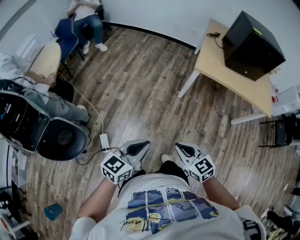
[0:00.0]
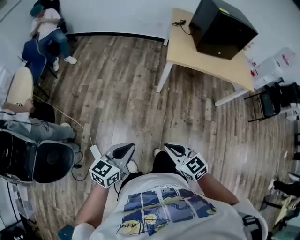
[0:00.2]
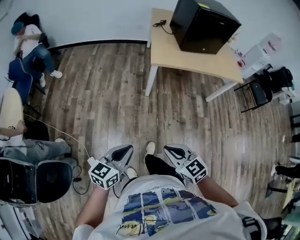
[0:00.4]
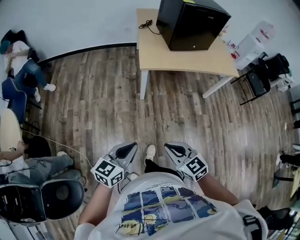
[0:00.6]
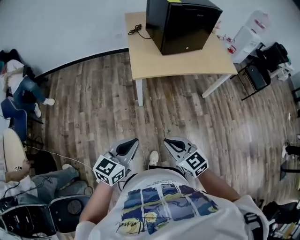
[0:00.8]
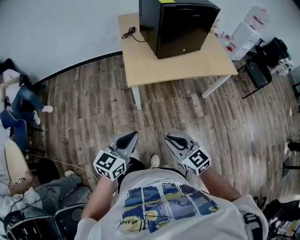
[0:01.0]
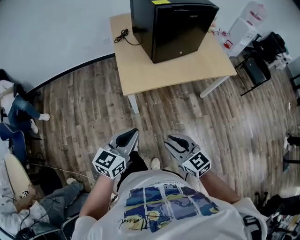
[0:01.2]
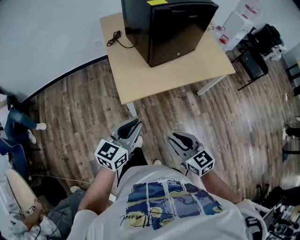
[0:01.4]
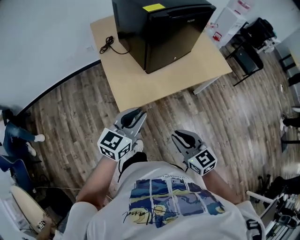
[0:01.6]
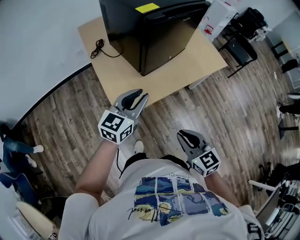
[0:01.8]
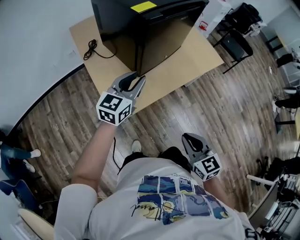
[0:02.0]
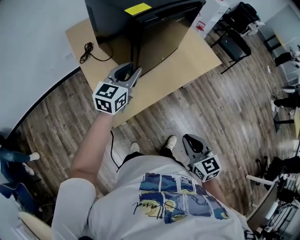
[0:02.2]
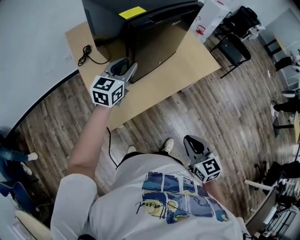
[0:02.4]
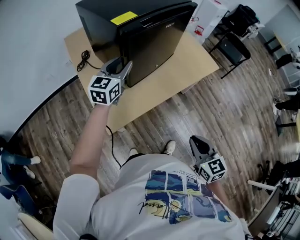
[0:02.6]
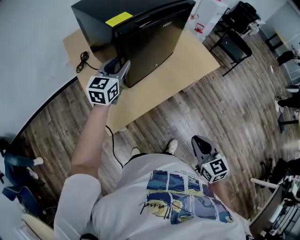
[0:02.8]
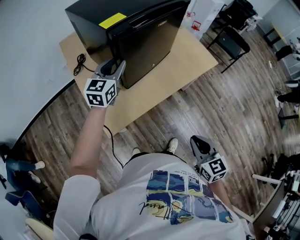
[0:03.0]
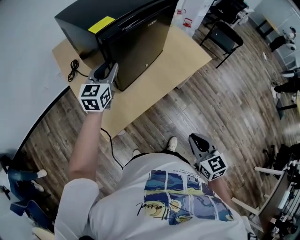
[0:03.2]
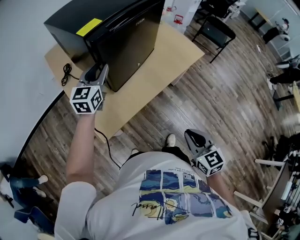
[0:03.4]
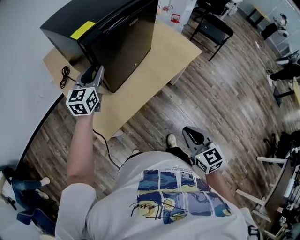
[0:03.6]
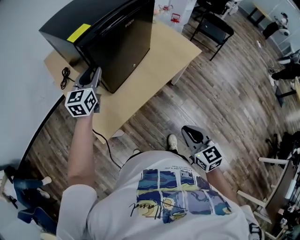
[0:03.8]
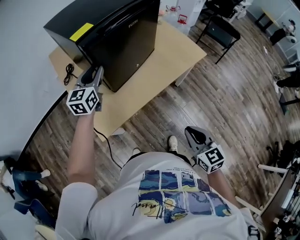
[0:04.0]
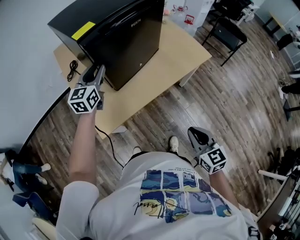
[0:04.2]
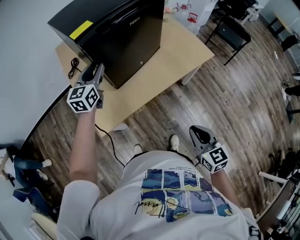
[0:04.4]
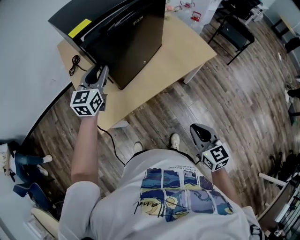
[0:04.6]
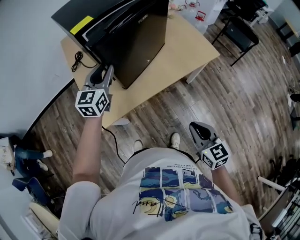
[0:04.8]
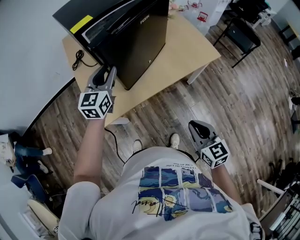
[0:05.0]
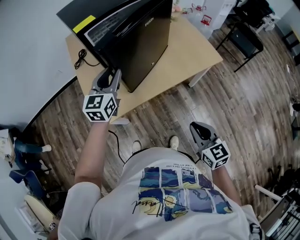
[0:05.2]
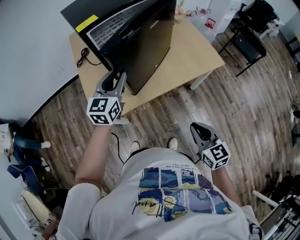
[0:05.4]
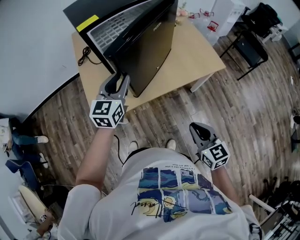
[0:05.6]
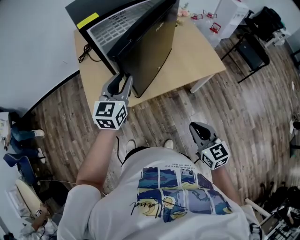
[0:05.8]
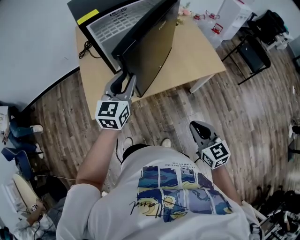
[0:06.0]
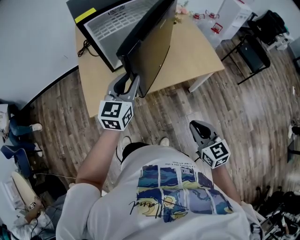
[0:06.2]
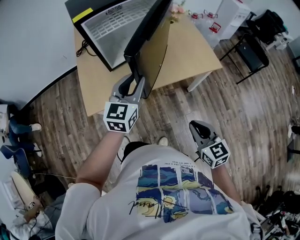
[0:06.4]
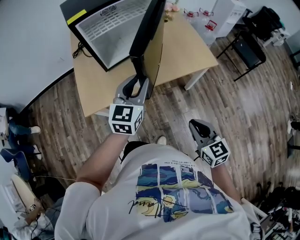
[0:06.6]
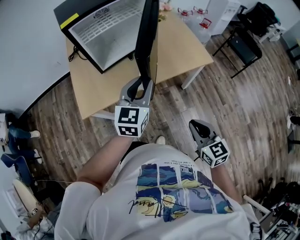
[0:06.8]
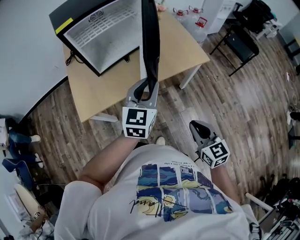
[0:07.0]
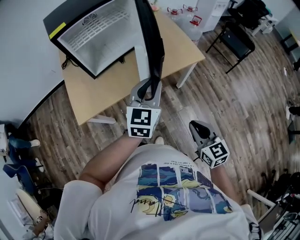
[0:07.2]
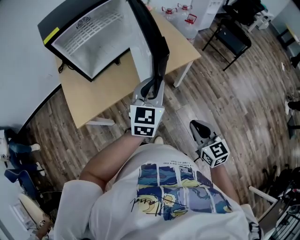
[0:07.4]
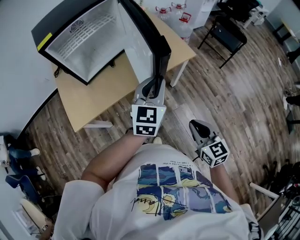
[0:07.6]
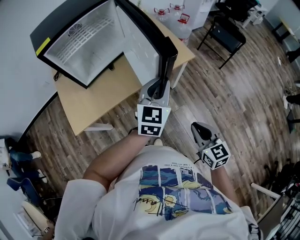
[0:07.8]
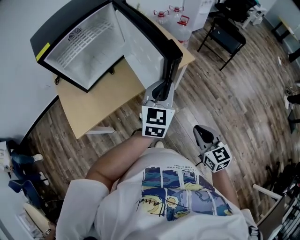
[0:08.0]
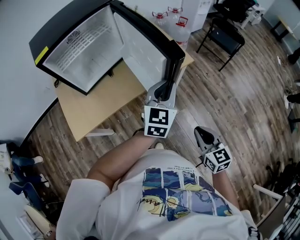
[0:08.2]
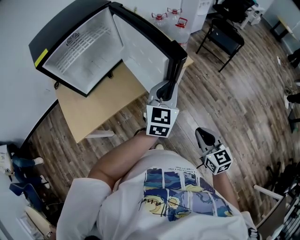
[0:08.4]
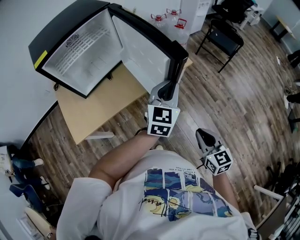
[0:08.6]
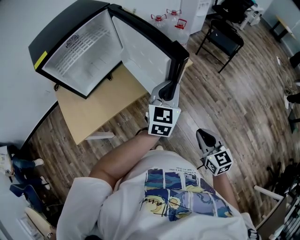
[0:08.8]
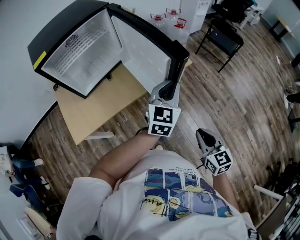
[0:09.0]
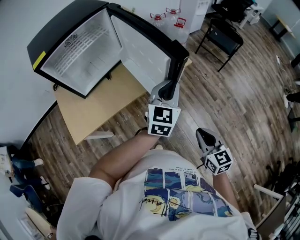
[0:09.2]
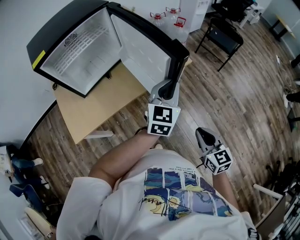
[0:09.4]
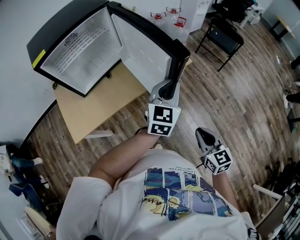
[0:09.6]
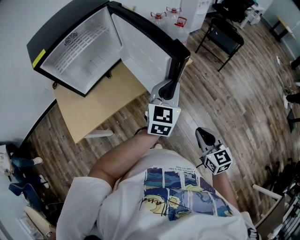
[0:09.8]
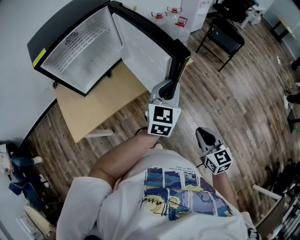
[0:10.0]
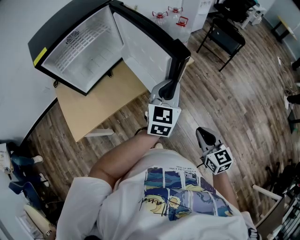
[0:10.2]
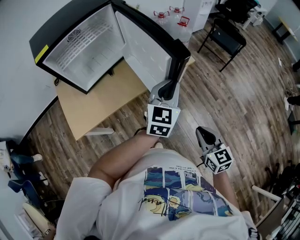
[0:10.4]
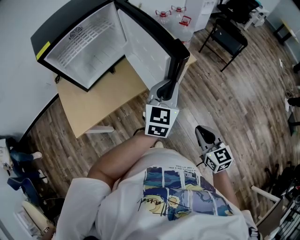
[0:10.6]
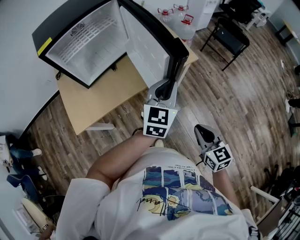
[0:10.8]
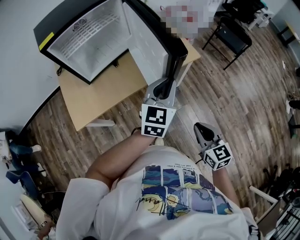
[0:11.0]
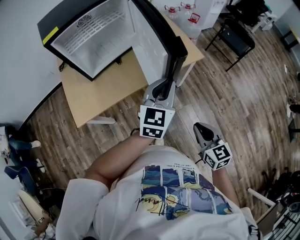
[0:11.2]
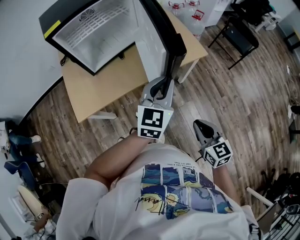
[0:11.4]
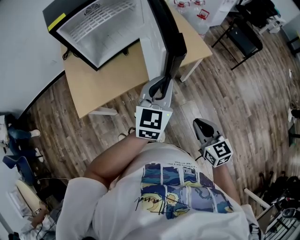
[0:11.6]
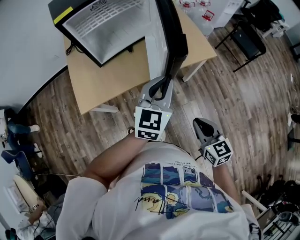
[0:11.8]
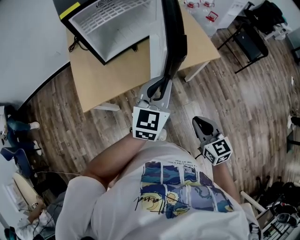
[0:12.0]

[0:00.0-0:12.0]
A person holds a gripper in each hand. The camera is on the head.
0:00.0 to 0:01.6: The two grippers travel together, approximately 50 cm. The right gripper changes its angle by some 40 degrees, while the left gripper turns by approximately 30 degrees.
0:01.6 to 0:03.0: The right gripper heads to the right and forward, covering roughly 15 cm, and rotates roughly 30 degrees; the left gripper travels forward by some 30 cm.
0:03.0 to 0:04.4: The right gripper travels to the right by roughly 10 cm.
0:04.4 to 0:06.0: The left gripper goes about 20 cm backward and to the right; the right gripper shifts approximately 10 cm to the right.
0:06.0 to 0:07.6: The right gripper shifts approximately 15 cm to the right and backward. Meanwhile the left gripper shifts approximately 25 cm to the right.
0:07.6 to 0:09.0: The left gripper heads to the right, covering some 10 cm. The right gripper shifts some 5 cm to the right.
0:09.0 to 0:10.4: There are only small adjustments of the grippers.
0:10.4 to 0:12.0: The grippers both shift to the left by approximately 15 cm.

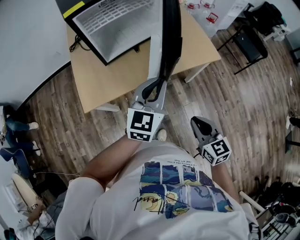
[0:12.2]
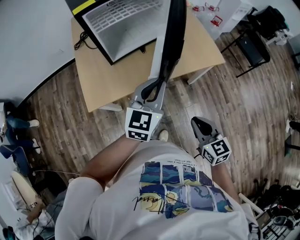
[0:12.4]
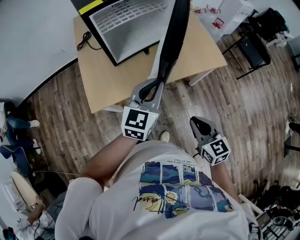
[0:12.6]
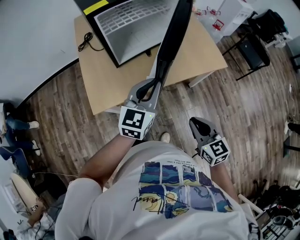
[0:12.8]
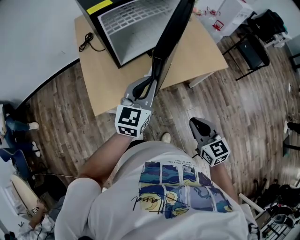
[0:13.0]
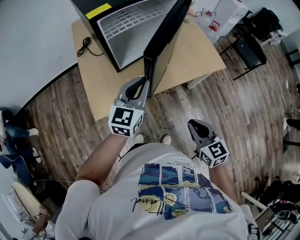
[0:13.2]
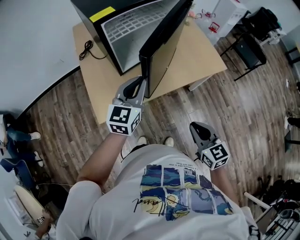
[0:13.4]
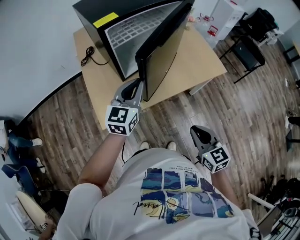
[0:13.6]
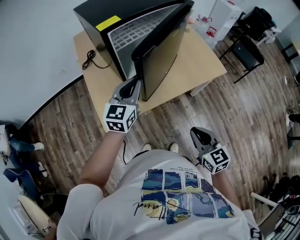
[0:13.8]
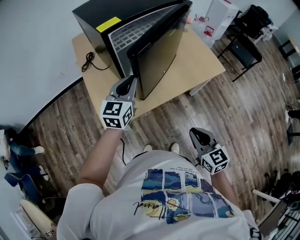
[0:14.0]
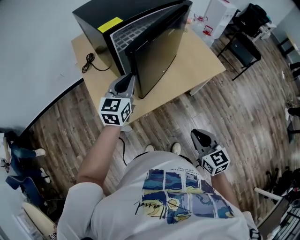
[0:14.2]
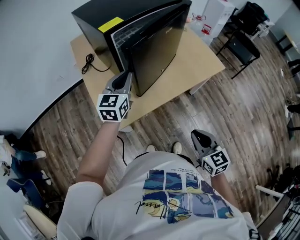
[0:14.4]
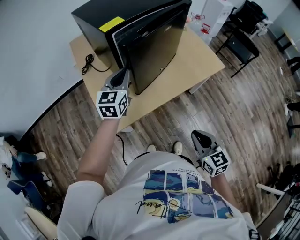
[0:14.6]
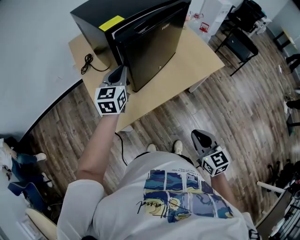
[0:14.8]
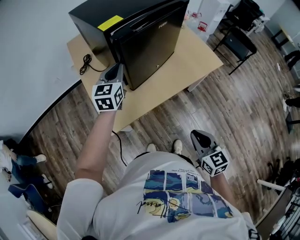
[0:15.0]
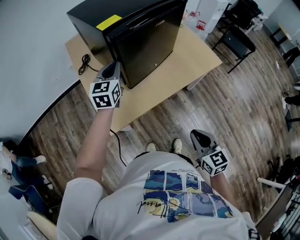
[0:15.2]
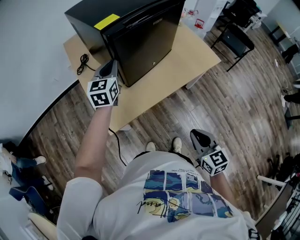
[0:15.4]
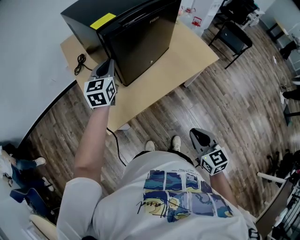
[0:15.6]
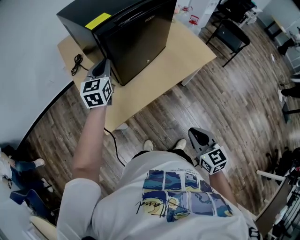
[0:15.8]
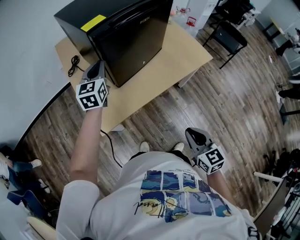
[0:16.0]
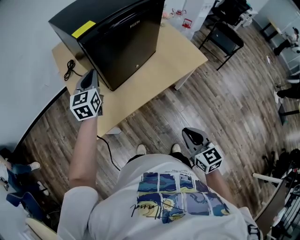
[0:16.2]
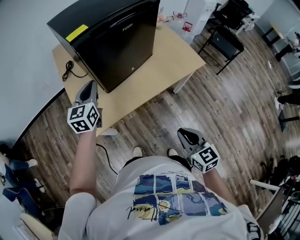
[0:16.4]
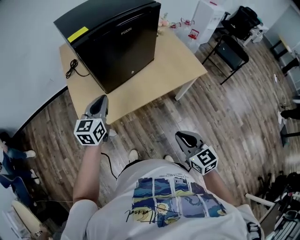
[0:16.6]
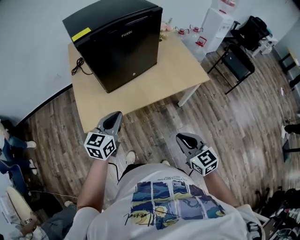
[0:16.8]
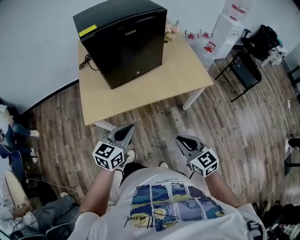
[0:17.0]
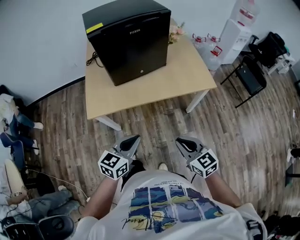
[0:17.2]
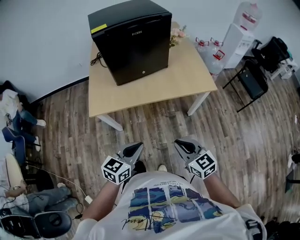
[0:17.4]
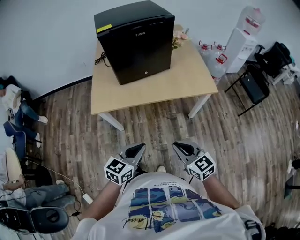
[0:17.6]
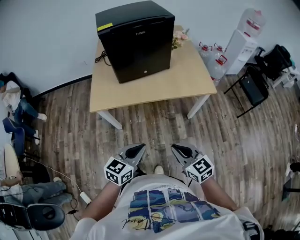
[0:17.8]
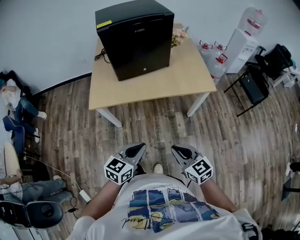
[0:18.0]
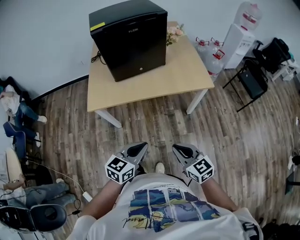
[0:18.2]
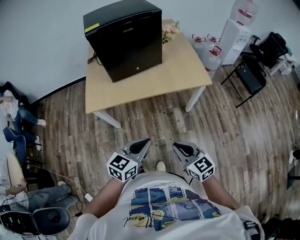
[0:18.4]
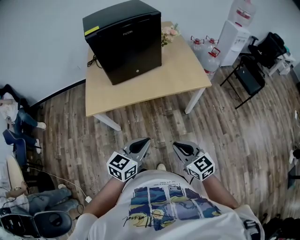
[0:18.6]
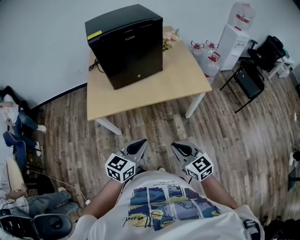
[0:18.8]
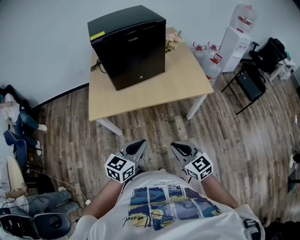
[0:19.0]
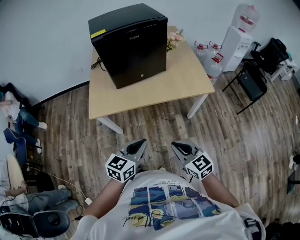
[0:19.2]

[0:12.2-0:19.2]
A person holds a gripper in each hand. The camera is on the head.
0:12.2 to 0:13.6: The right gripper goes about 10 cm to the left; the left gripper heads to the left and forward, covering roughly 20 cm.
0:13.6 to 0:15.0: The left gripper heads to the left and forward, covering approximately 15 cm. Meanwhile the right gripper heads to the left, covering approximately 5 cm.
0:15.0 to 0:16.4: The left gripper moves backward, about 5 cm, while the right gripper goes approximately 5 cm to the right.
0:16.4 to 0:17.8: The right gripper travels to the right and backward by about 15 cm, and swivels approximately 30 degrees; the left gripper goes roughly 50 cm backward and to the right.
0:17.8 to 0:19.2: There are only small adjustments of the grippers.

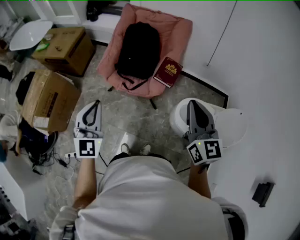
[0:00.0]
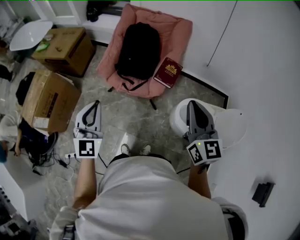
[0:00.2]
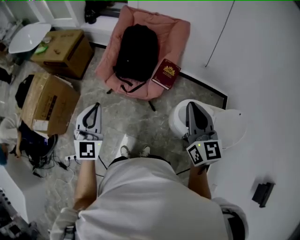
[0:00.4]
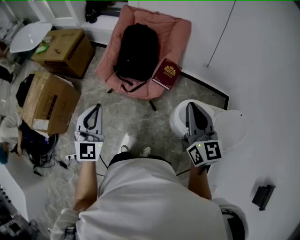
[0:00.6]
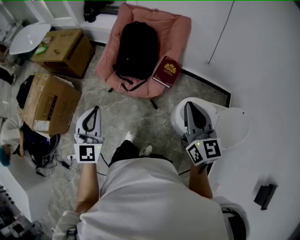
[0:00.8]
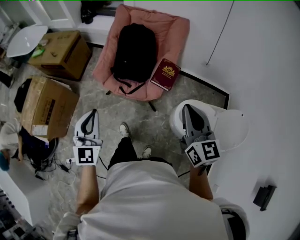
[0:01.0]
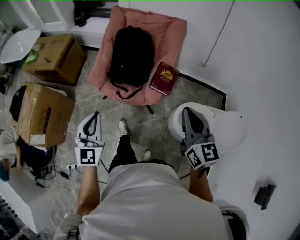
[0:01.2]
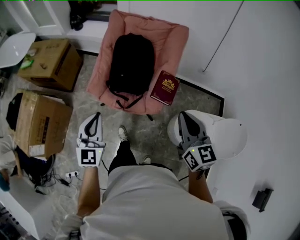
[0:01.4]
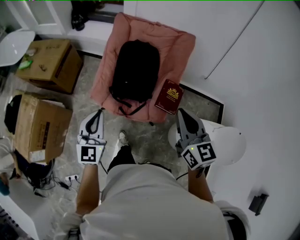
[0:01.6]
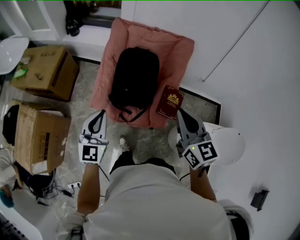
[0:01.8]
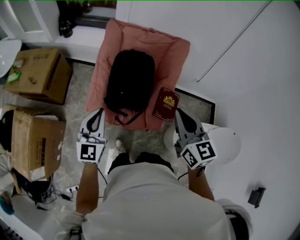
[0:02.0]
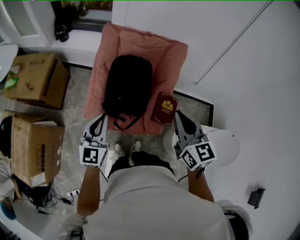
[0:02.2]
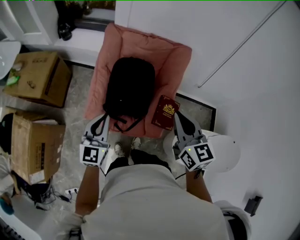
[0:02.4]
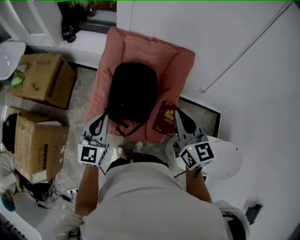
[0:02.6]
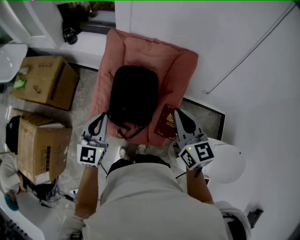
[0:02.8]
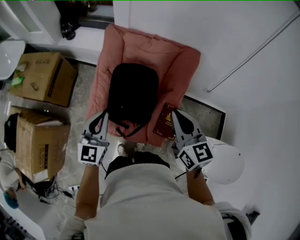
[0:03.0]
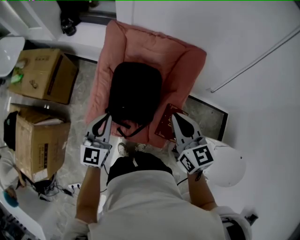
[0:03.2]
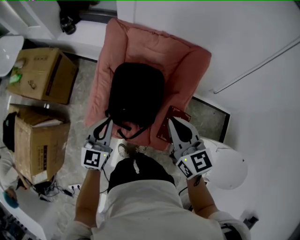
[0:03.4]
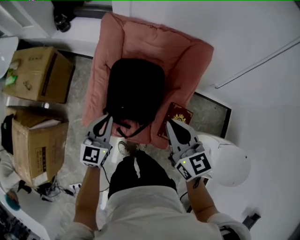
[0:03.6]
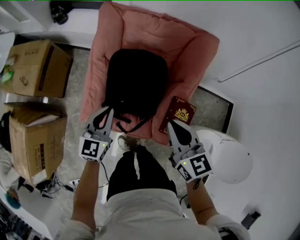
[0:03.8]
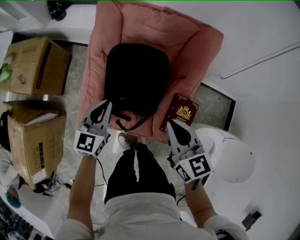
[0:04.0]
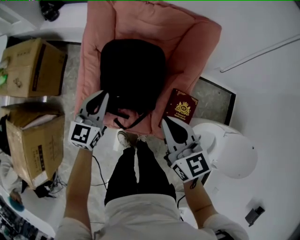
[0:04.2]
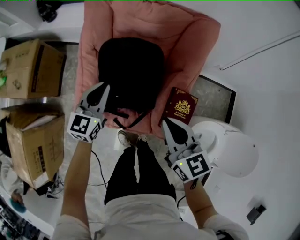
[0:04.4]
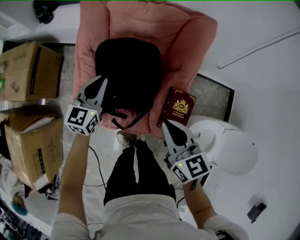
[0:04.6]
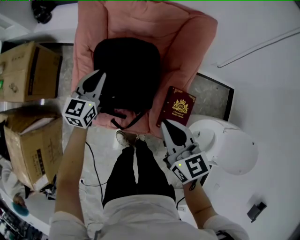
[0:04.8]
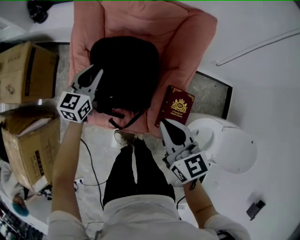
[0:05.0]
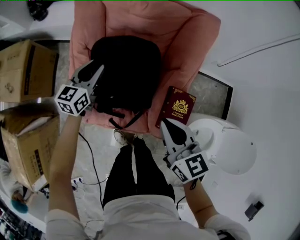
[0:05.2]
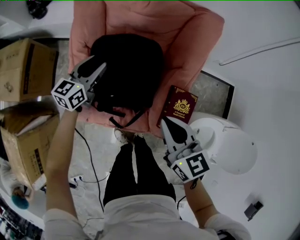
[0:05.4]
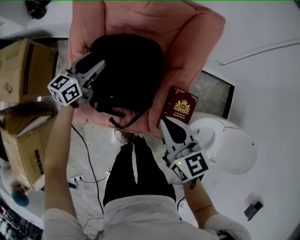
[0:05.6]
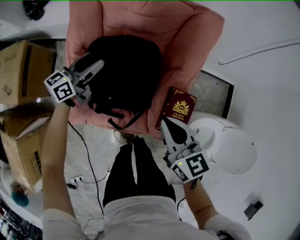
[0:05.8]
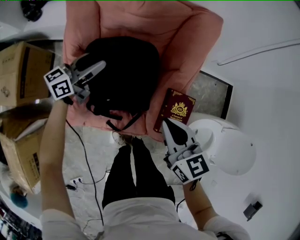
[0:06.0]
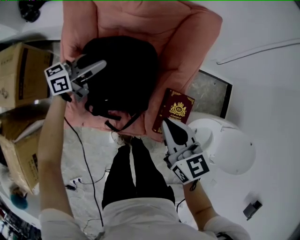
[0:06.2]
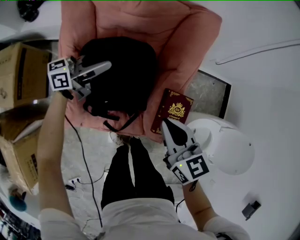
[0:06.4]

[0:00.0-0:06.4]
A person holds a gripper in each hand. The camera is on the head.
0:00.0 to 0:01.6: The left gripper shifts about 25 cm forward, while the right gripper shifts roughly 25 cm forward and to the left.
0:01.6 to 0:03.2: Both grippers move forward, roughly 25 cm.
0:03.2 to 0:04.8: The left gripper heads downward and forward, covering some 25 cm. Meanwhile the right gripper travels downward by about 15 cm.
0:04.8 to 0:06.4: The left gripper moves forward, some 10 cm, changes its angle by some 50 degrees, and opens its fingers. Meanwhile the right gripper changes place by about 5 cm.
